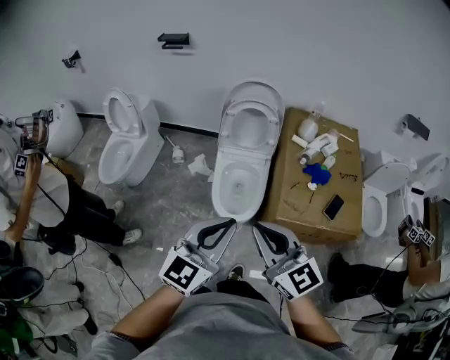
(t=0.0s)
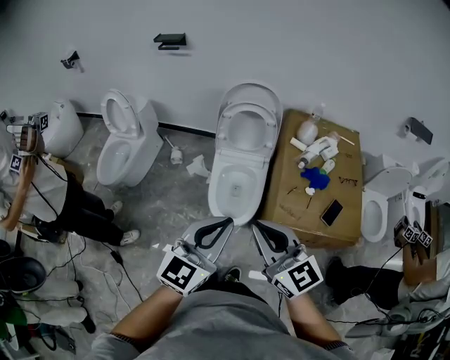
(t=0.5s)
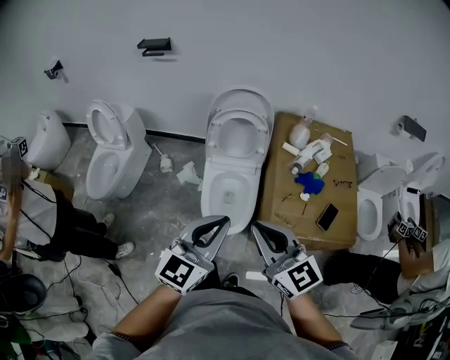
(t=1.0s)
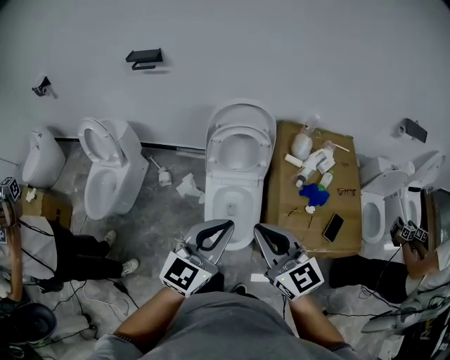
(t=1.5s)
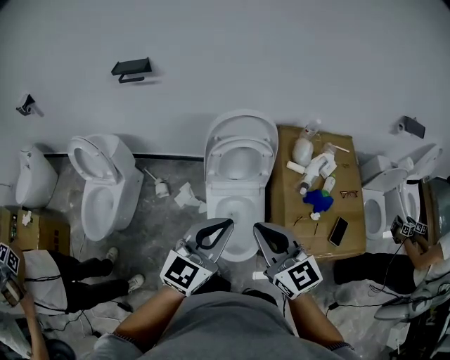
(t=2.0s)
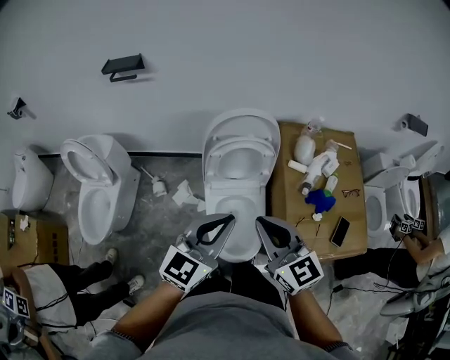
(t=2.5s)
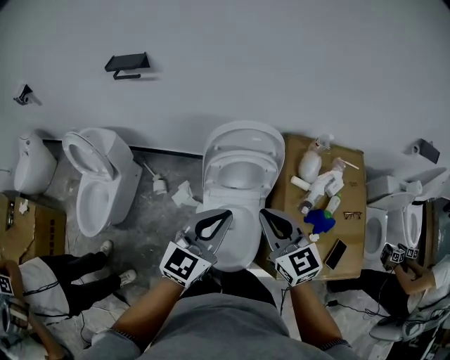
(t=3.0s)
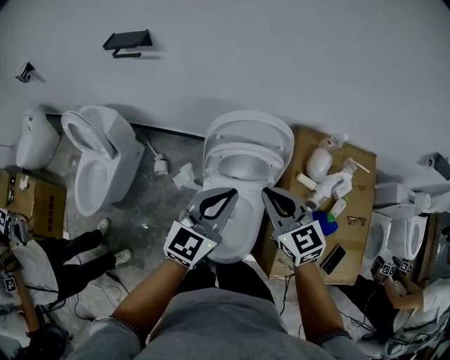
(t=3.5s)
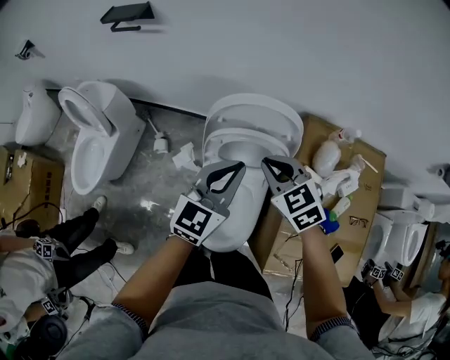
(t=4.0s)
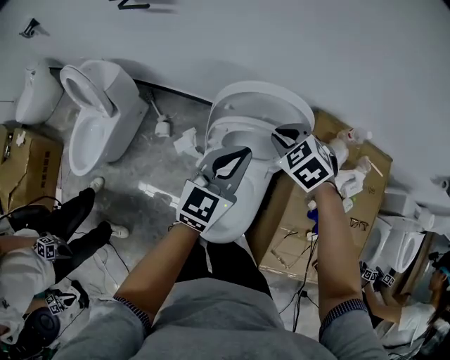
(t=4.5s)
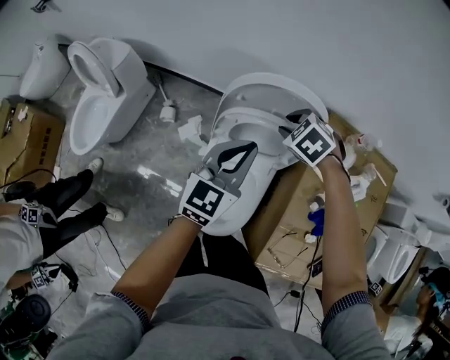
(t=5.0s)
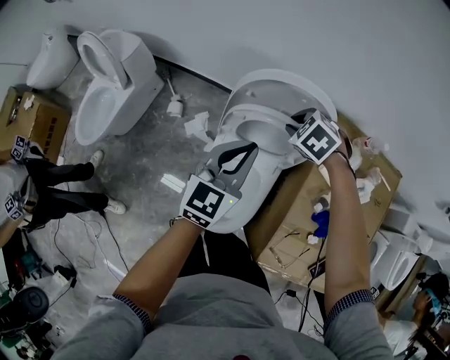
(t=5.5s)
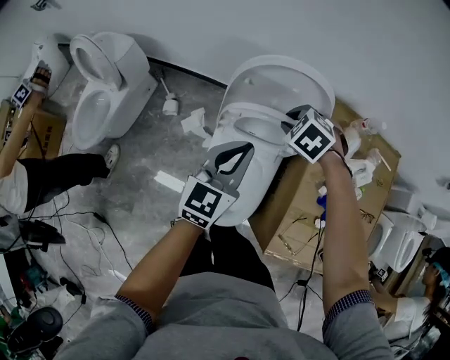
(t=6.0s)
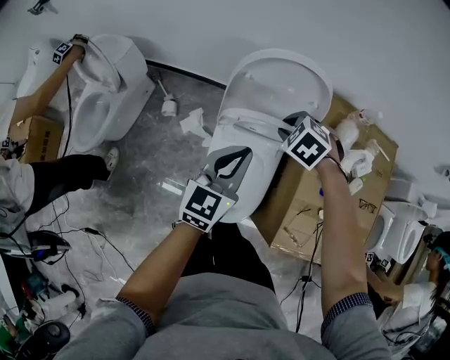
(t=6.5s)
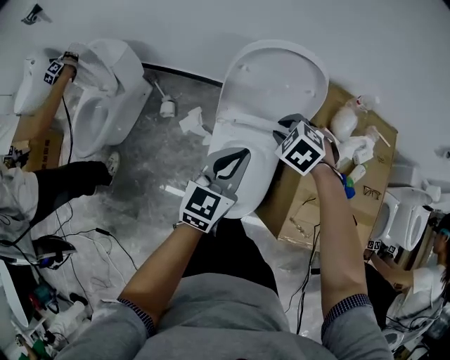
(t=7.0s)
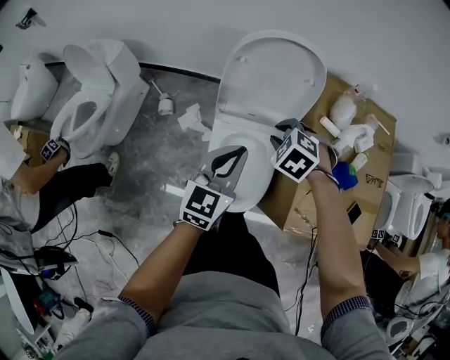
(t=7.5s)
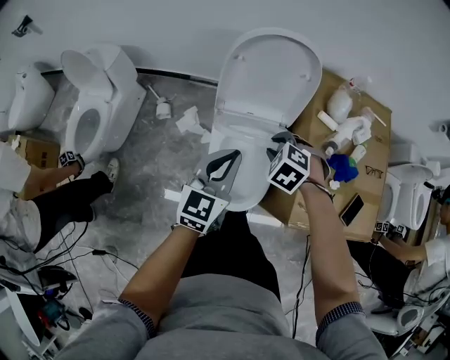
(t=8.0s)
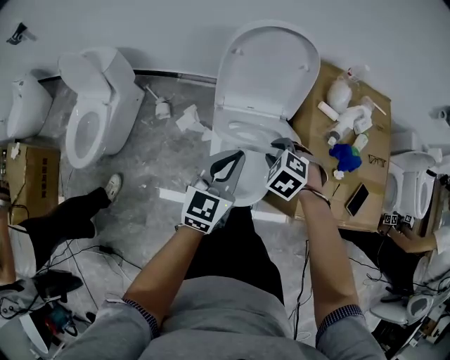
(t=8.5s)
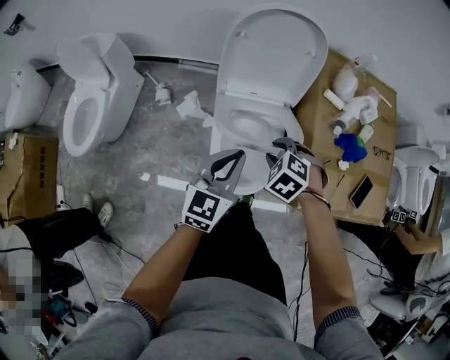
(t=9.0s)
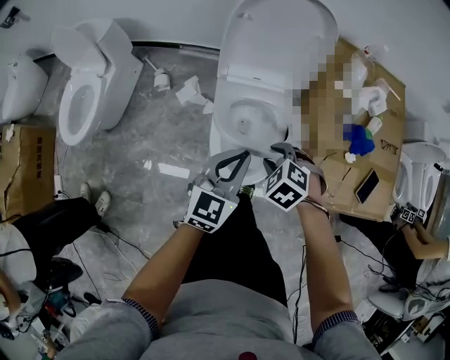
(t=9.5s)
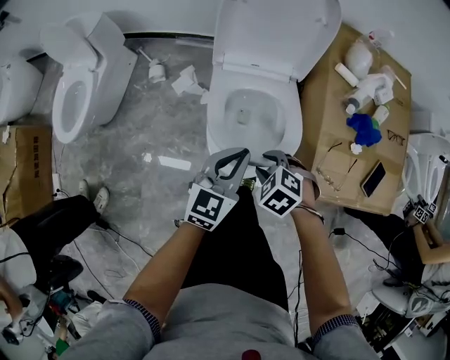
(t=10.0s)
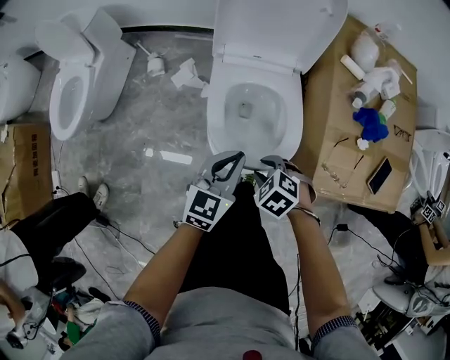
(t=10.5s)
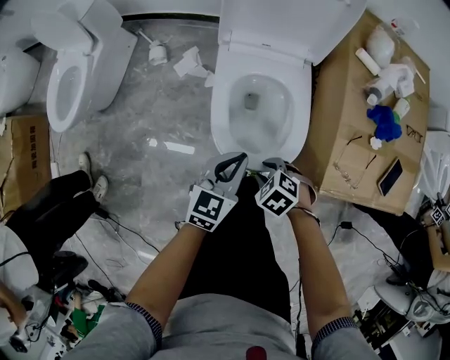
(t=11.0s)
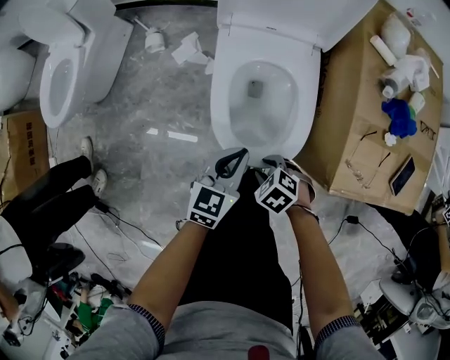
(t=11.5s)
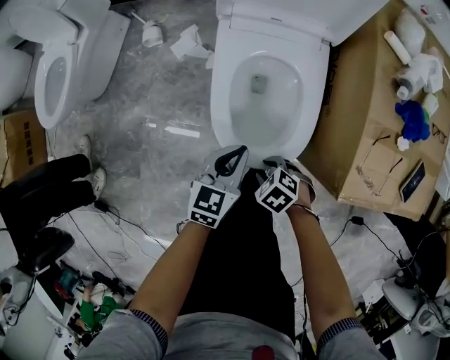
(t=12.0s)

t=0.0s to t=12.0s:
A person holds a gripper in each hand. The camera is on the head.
t=0.0s to t=2.0s: The grippers both shift forward by approximately 25 cm.
t=2.0s to t=4.0s: The grippers both shift forward and downward by about 30 cm. The right gripper tilts its fingers roughly 30 degrees downward.
t=4.0s to t=6.0s: The right gripper shifts roughly 10 cm downward, and angles its fingers downward, by approximately 30 degrees, while the left gripper travels downward by some 5 cm.
t=6.0s to t=8.0s: The right gripper travels backward by some 20 cm, while the left gripper heads backward, covering about 15 cm.
t=8.0s to t=10.0s: The left gripper moves downward and backward, roughly 15 cm; the right gripper goes roughly 20 cm backward and downward.
t=10.0s to t=12.0s: Both grippers travel together downward, about 20 cm.

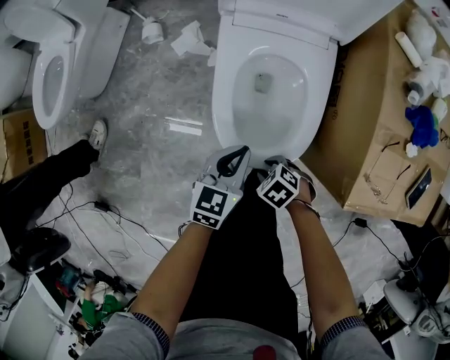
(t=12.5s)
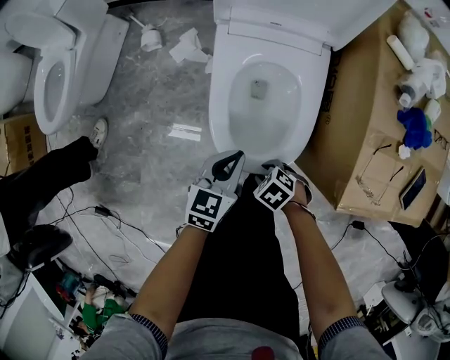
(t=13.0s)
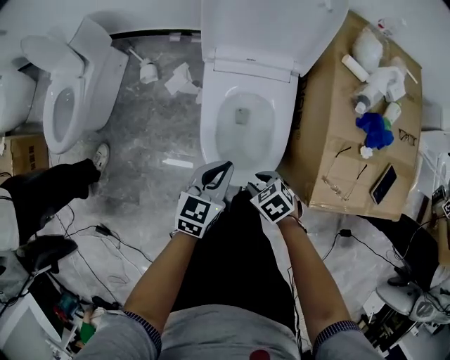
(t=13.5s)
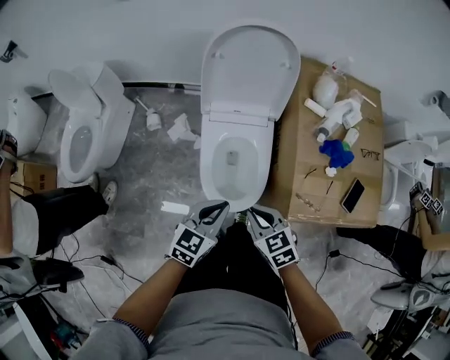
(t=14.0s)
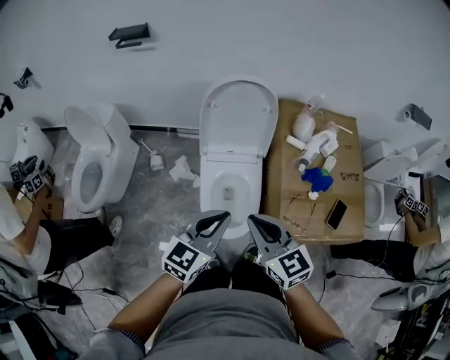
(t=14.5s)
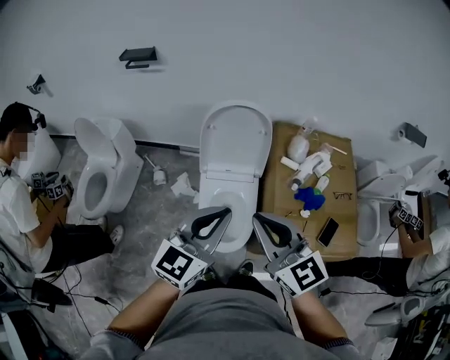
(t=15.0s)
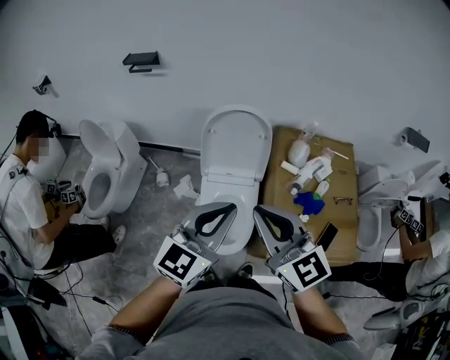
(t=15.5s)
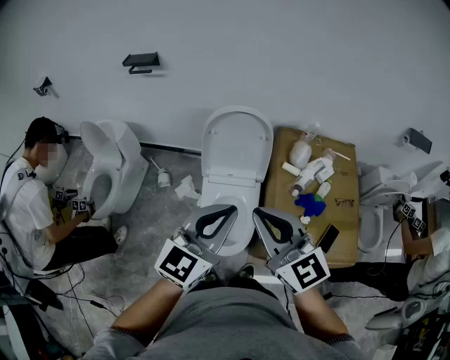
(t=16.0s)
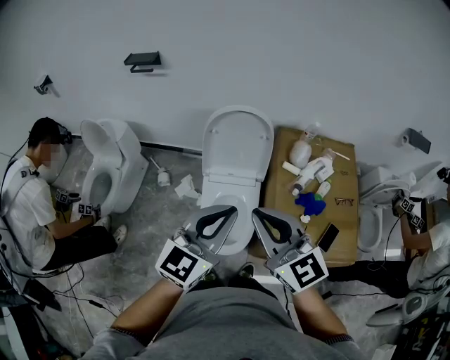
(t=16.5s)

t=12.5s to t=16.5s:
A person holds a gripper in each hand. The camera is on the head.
t=12.5s to t=14.5s: The grippers both shift upward by roughly 50 cm. The right gripper points its fingers approximately 50 degrees further upward, and closes. The left gripper changes its angle by about 30 degrees.
t=14.5s to t=16.5s: The grippers both shift upward by roughly 15 cm.

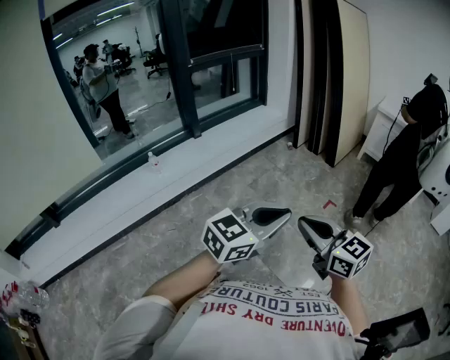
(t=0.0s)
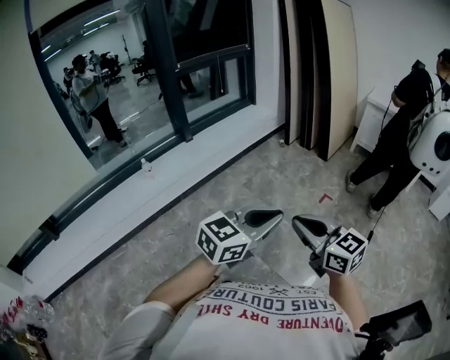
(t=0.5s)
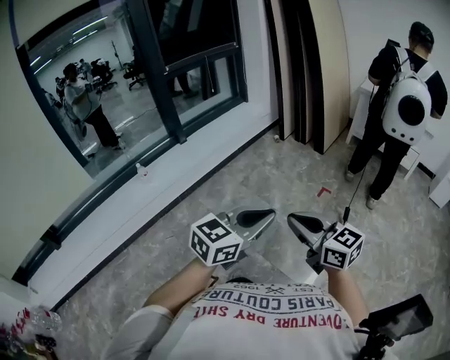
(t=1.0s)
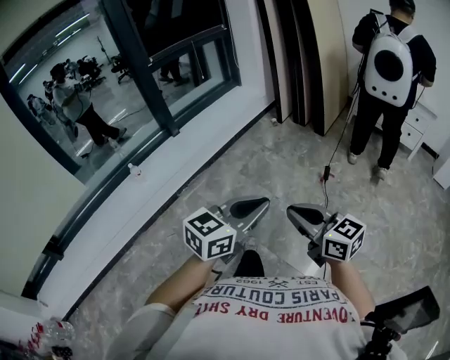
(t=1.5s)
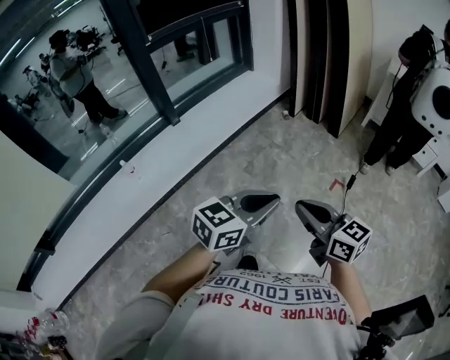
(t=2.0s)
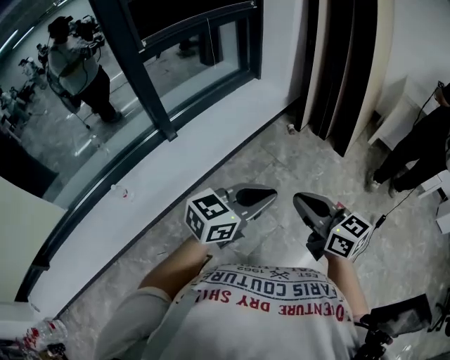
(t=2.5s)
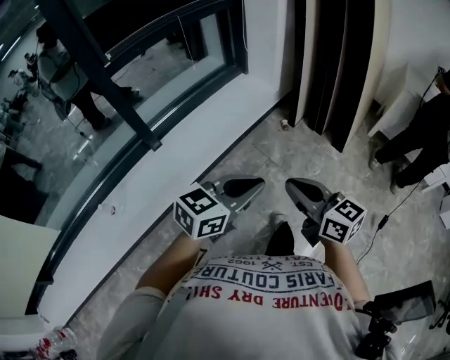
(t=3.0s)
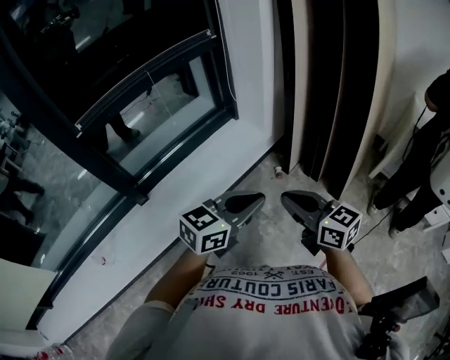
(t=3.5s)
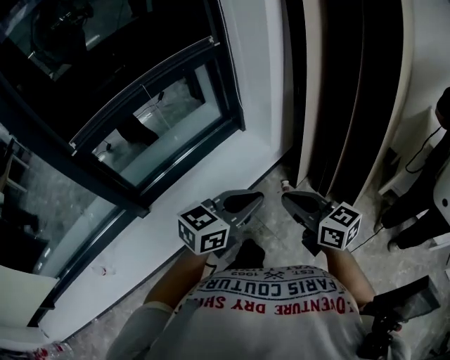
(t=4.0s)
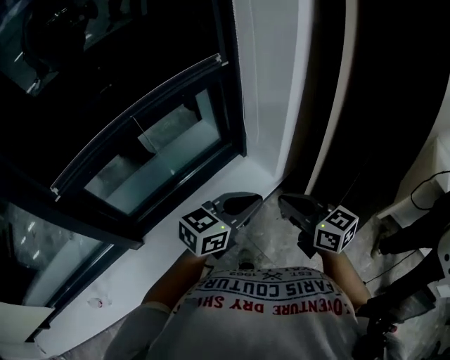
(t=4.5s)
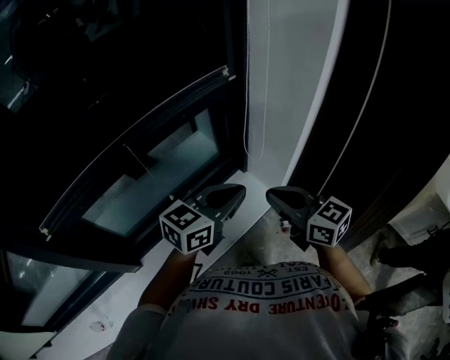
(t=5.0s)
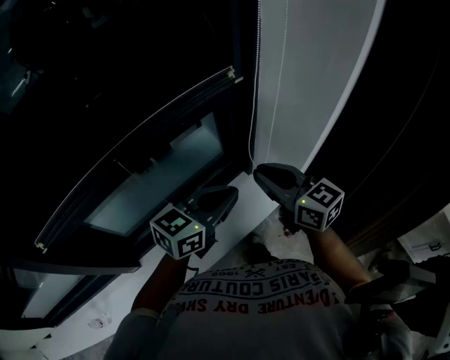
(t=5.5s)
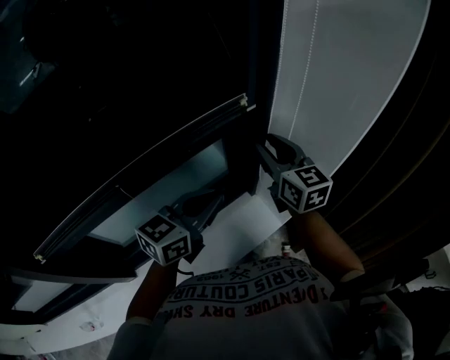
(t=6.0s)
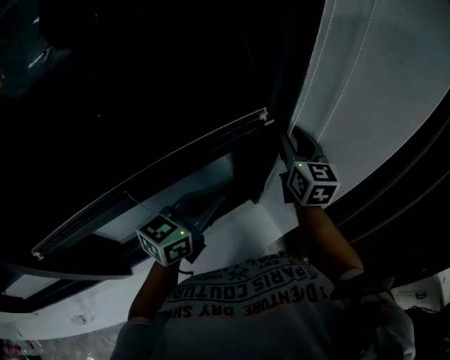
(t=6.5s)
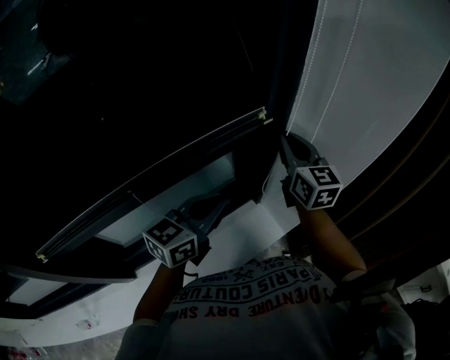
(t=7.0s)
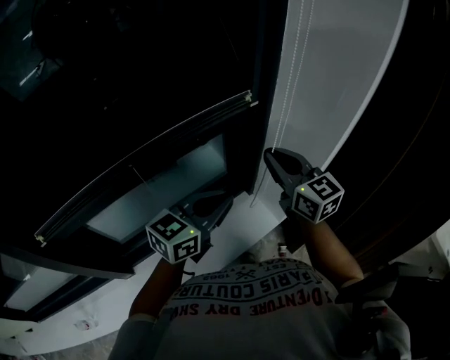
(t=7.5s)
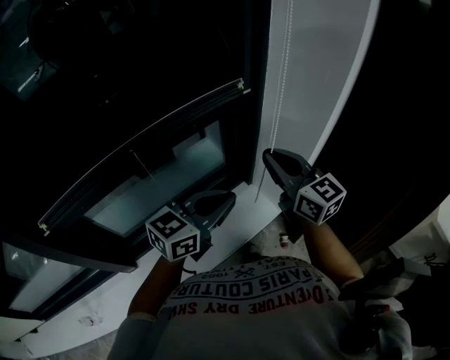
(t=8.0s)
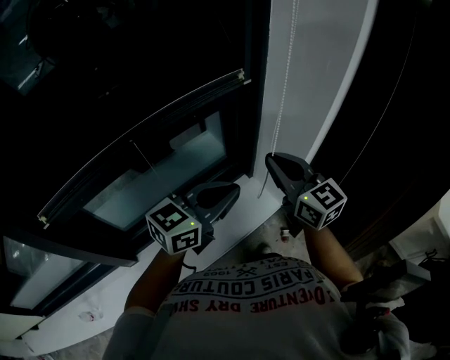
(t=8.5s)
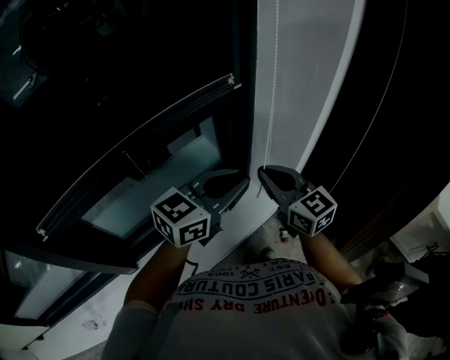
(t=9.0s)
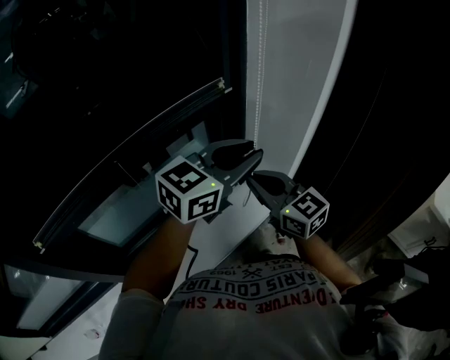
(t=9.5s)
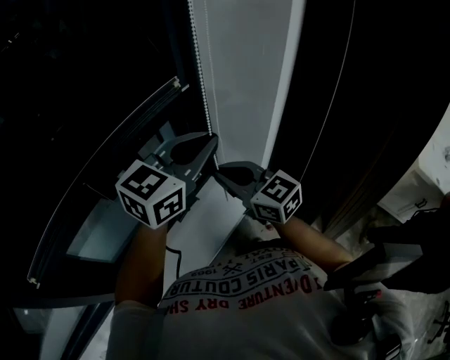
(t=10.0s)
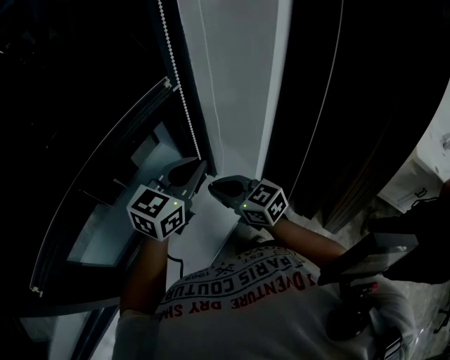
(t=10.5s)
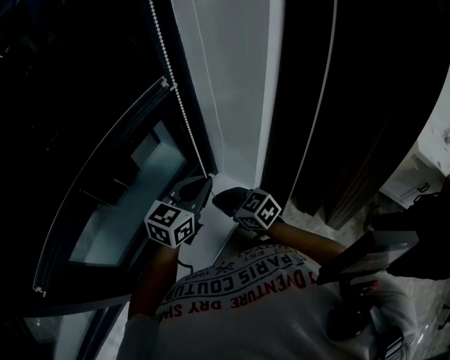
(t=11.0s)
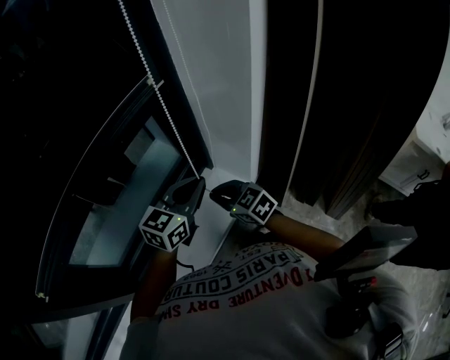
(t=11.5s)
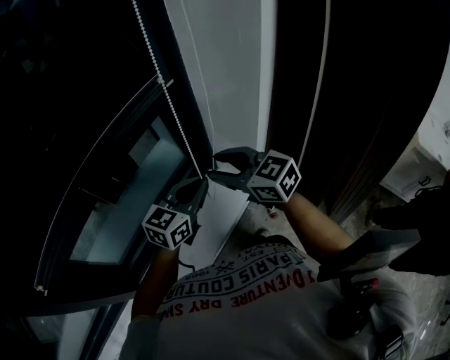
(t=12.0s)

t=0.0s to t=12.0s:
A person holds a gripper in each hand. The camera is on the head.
t=0.0s to t=2.0s: The grippers both shift forward by about 25 cm.
t=2.0s to t=4.0s: Both grippers are carried forward, some 70 cm.
t=4.0s to t=6.0s: The pair of grippers is taken forward, about 60 cm. The right gripper opens its fingers.
t=6.0s to t=8.0s: Both grippers travel together backward, about 15 cm. The right gripper closes up.
t=8.0s to t=10.0s: The left gripper travels forward, upward and to the right by approximately 15 cm, while the right gripper heads downward, covering about 5 cm.
t=10.0s to t=12.0s: The right gripper reaches approximately 15 cm downward, then returns, and opens its fingers, while the left gripper moves downward, some 15 cm.
